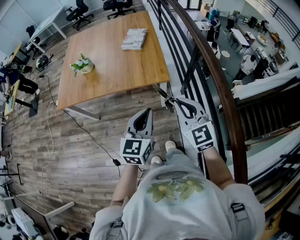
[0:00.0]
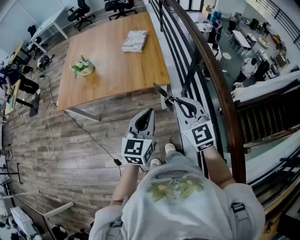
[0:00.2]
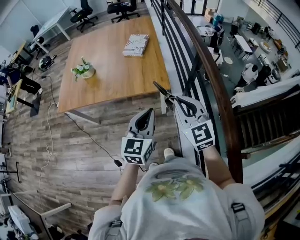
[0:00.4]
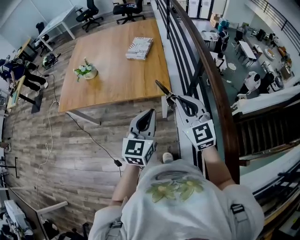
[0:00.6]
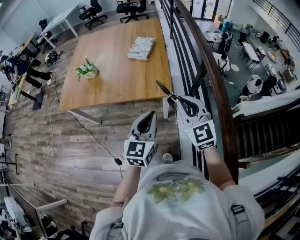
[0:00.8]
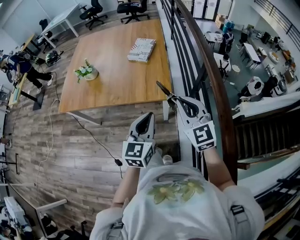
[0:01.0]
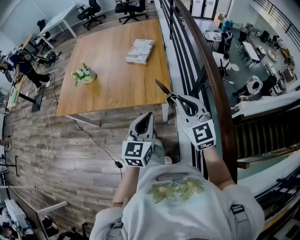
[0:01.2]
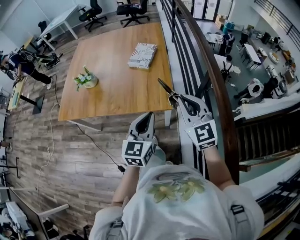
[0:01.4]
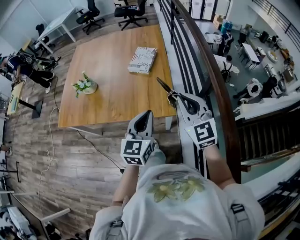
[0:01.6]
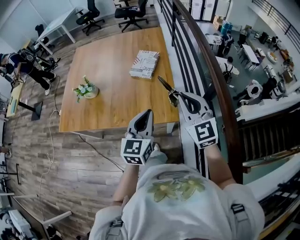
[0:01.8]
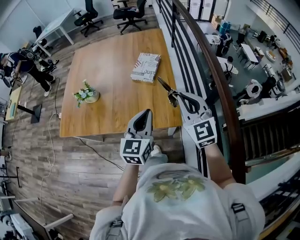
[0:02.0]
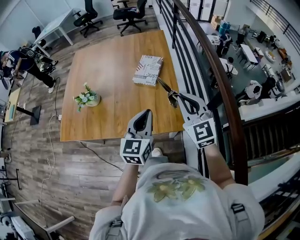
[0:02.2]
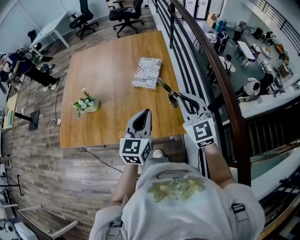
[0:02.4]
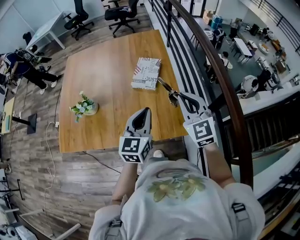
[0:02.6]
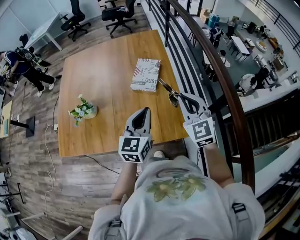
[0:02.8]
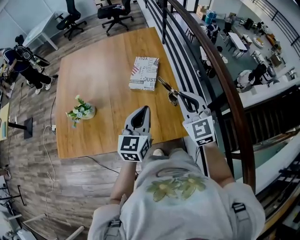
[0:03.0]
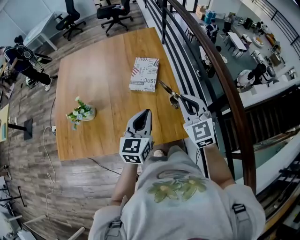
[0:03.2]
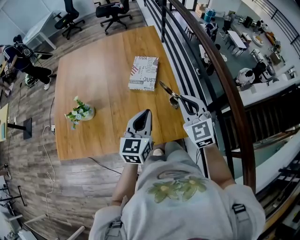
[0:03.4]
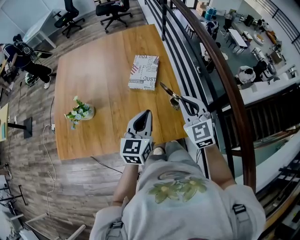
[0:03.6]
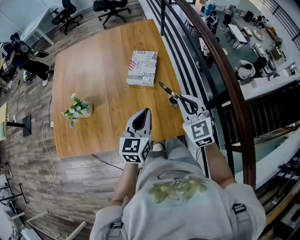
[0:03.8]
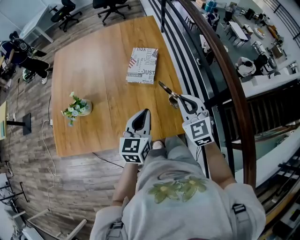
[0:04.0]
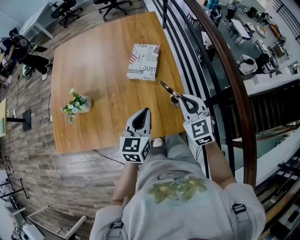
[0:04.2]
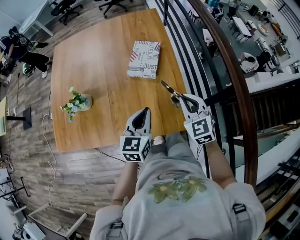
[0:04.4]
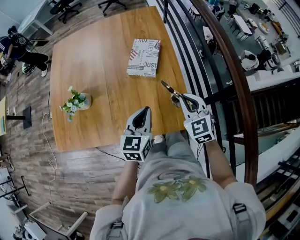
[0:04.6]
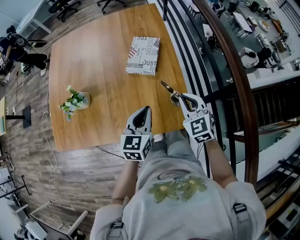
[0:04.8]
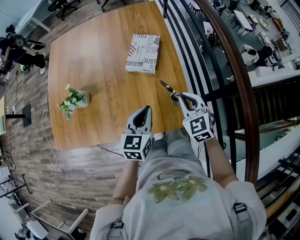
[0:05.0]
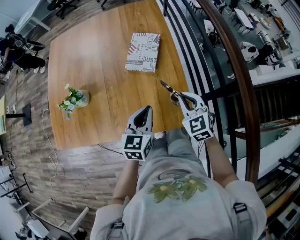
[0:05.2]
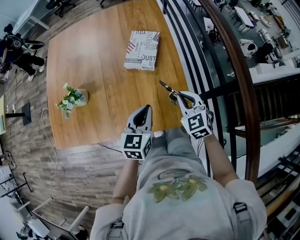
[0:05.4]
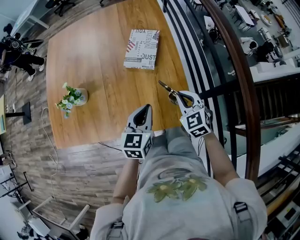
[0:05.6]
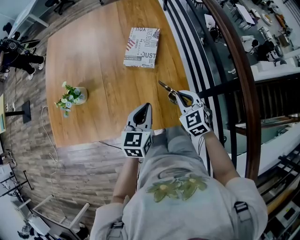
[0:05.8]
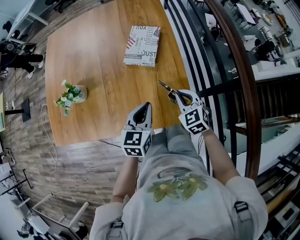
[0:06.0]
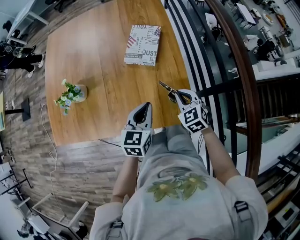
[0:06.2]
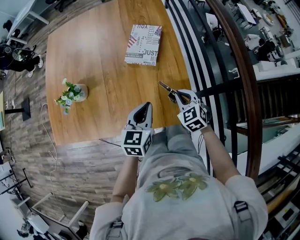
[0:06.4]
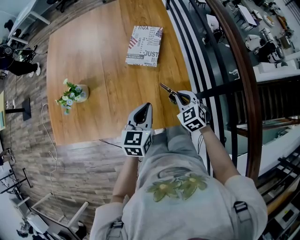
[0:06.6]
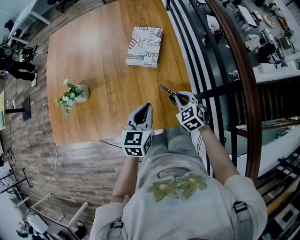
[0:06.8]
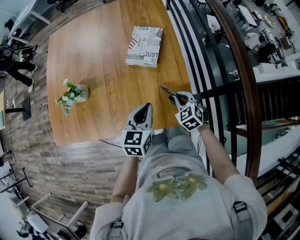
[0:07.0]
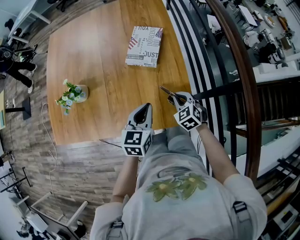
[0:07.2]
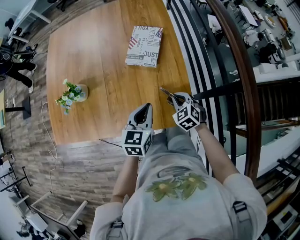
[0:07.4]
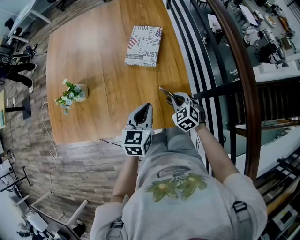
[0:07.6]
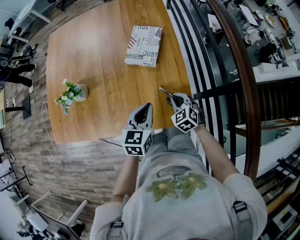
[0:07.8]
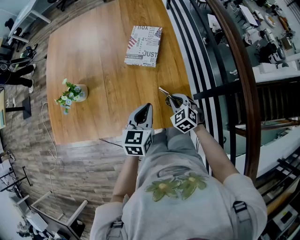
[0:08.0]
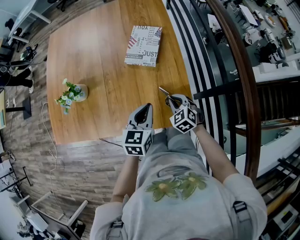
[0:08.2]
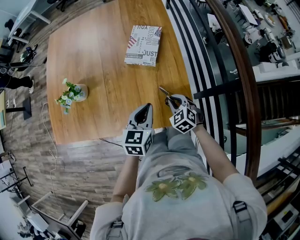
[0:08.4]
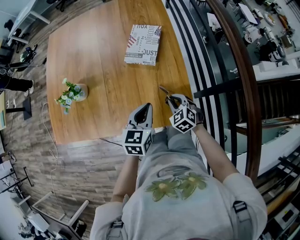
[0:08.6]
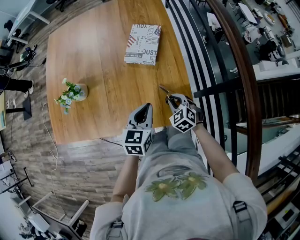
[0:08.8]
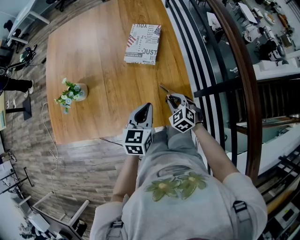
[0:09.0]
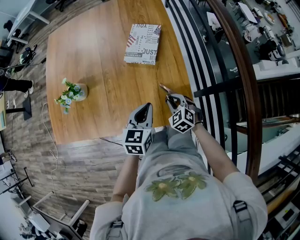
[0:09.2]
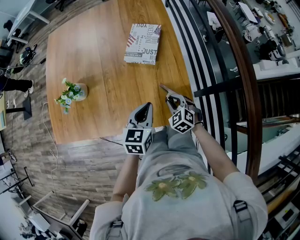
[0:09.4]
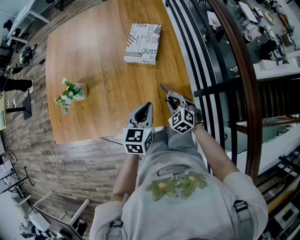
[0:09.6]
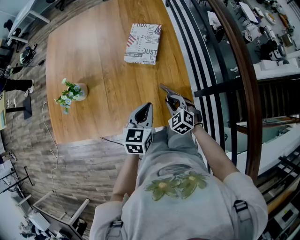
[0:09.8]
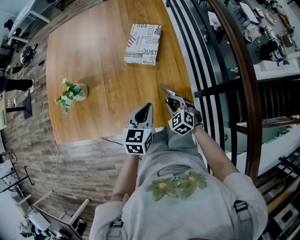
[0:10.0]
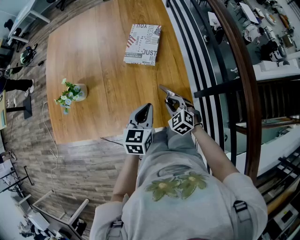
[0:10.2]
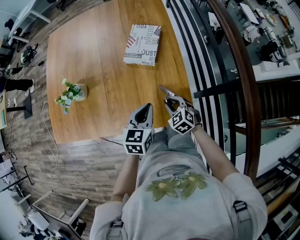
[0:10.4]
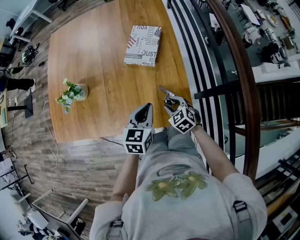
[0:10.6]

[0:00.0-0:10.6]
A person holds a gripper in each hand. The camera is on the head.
0:00.0 to 0:01.6: The grippers both shift forward by about 20 cm.
0:01.6 to 0:03.0: The left gripper heads forward and to the left, covering approximately 20 cm; the right gripper heads forward, covering approximately 20 cm.
0:03.0 to 0:04.6: The two grippers go some 10 cm downward.
0:04.6 to 0:06.0: The right gripper shifts some 10 cm downward.
0:06.0 to 0:07.6: The right gripper moves downward, roughly 10 cm.
0:07.6 to 0:10.6: The grippers make only small movements.

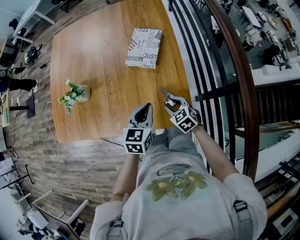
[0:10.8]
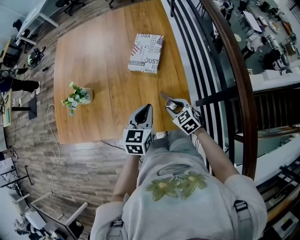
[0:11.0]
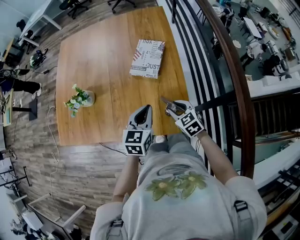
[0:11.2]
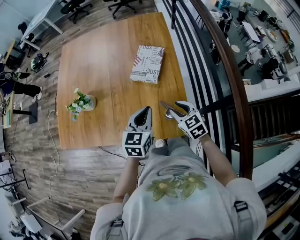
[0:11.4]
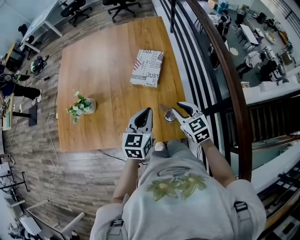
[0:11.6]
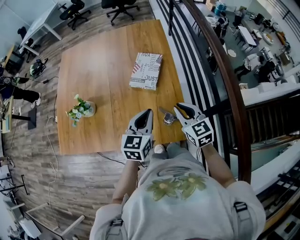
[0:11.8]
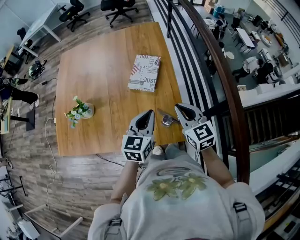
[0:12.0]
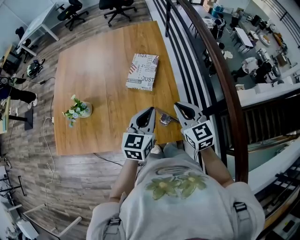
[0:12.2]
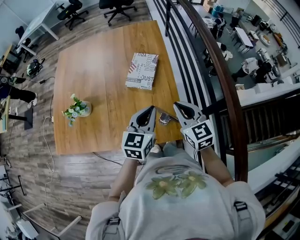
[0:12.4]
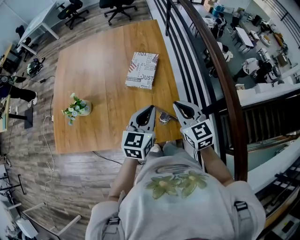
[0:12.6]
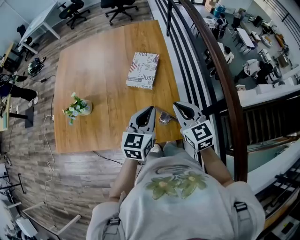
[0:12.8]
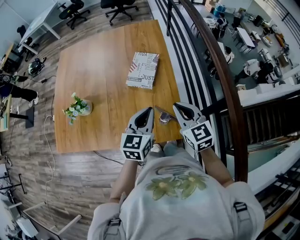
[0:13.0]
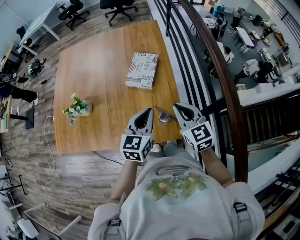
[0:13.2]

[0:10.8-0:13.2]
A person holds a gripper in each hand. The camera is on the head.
0:10.8 to 0:12.0: The right gripper travels upward by about 25 cm, turns by roughly 30 degrees, and closes; the left gripper is displaced upward by roughly 10 cm.
0:12.0 to 0:13.2: The grippers move only a little.

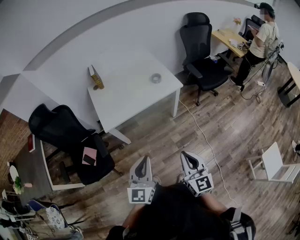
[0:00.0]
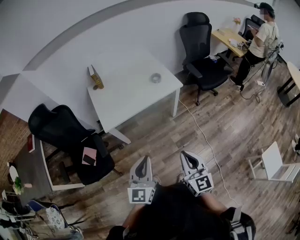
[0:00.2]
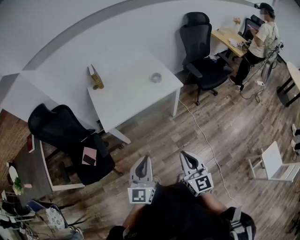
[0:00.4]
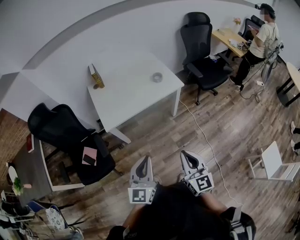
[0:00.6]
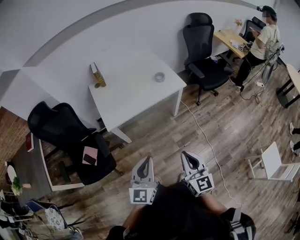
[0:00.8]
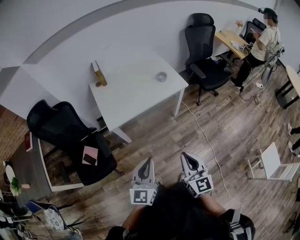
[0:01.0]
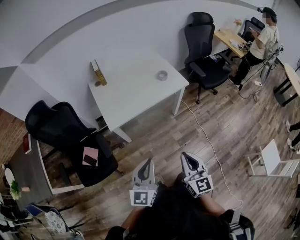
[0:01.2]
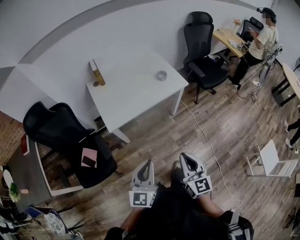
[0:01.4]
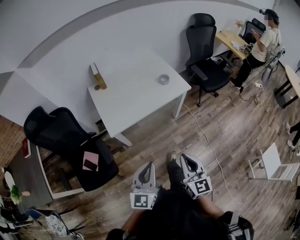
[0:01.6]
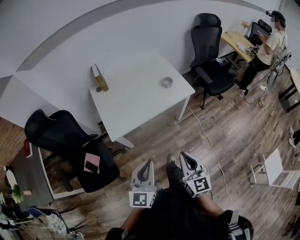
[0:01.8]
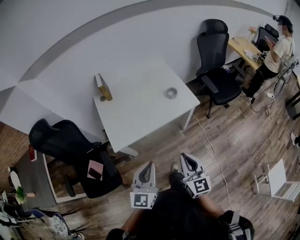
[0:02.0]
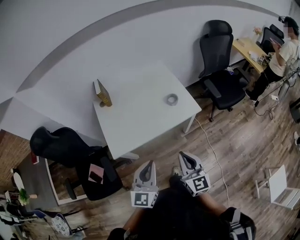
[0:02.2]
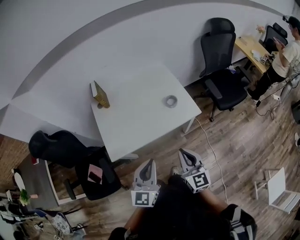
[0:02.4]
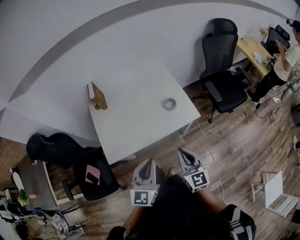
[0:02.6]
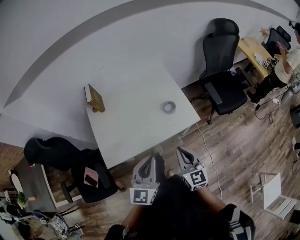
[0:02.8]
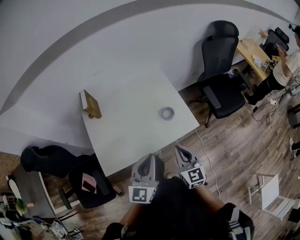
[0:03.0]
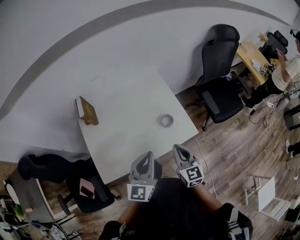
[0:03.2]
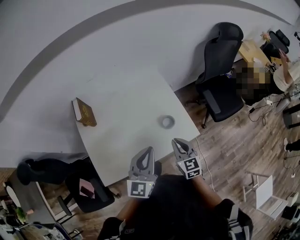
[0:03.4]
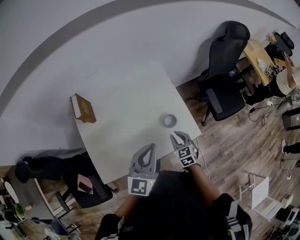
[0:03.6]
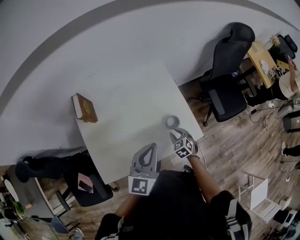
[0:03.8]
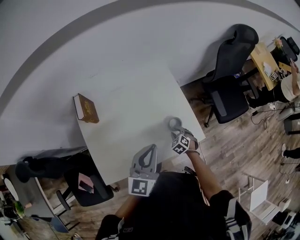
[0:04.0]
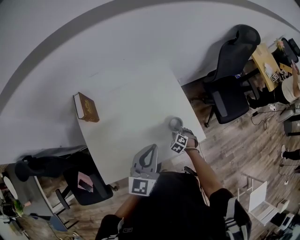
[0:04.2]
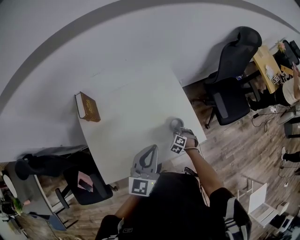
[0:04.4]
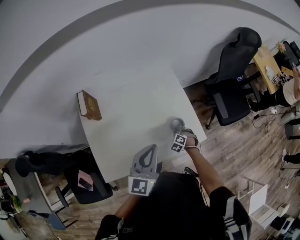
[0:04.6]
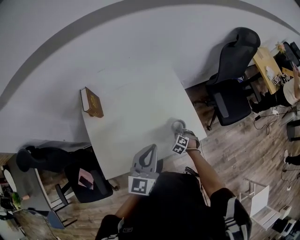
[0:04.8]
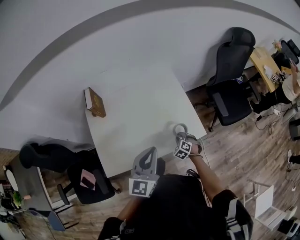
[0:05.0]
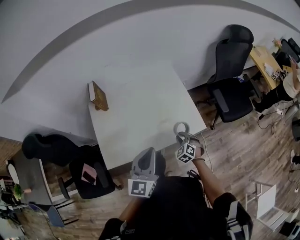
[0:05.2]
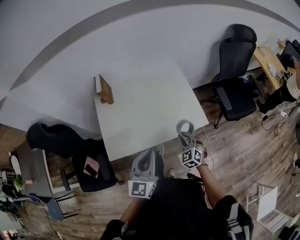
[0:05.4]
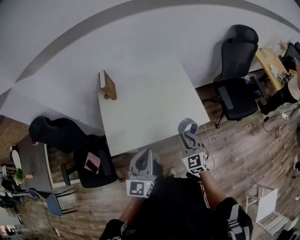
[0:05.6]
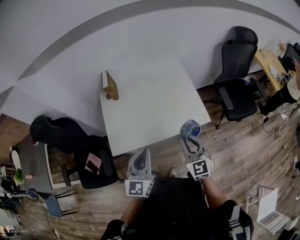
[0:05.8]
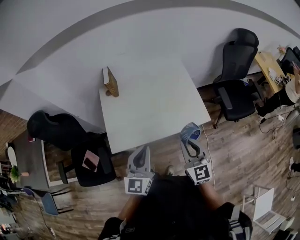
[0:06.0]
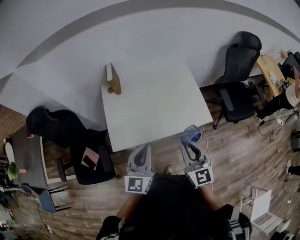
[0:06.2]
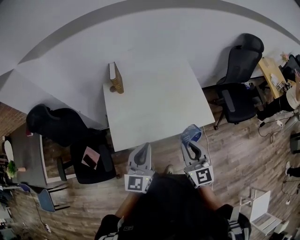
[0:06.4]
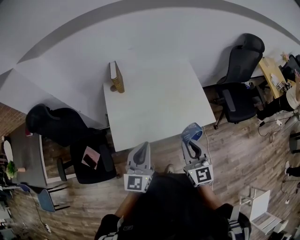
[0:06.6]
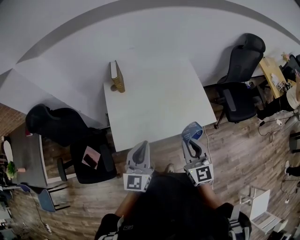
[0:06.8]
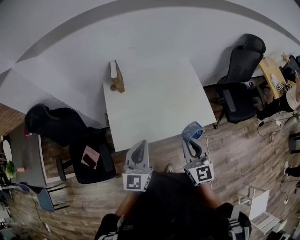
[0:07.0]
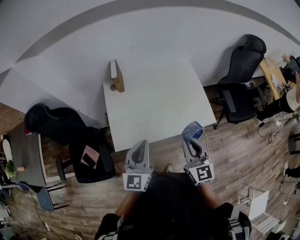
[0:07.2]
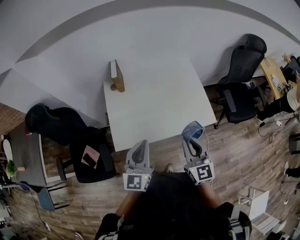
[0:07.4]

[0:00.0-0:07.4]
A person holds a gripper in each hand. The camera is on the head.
0:00.0 to 0:01.4: Both grippers move to the left, some 10 cm.
0:01.4 to 0:03.0: The two grippers travel together, forward, roughly 40 cm.
0:03.0 to 0:04.4: The left gripper travels forward by some 20 cm. The right gripper travels downward and forward by some 40 cm, tips its fingers downward by some 60 degrees, and opens its fingers.
0:04.4 to 0:06.0: The left gripper is displaced backward by approximately 25 cm. The right gripper shifts some 50 cm upward and backward, and tilts its fingers approximately 60 degrees upward.
0:06.0 to 0:07.4: The right gripper changes place by approximately 5 cm; the left gripper goes approximately 5 cm to the left.

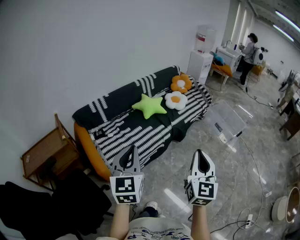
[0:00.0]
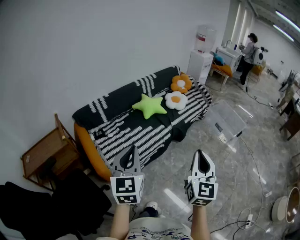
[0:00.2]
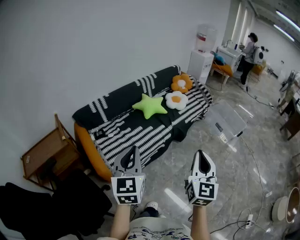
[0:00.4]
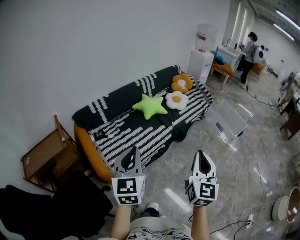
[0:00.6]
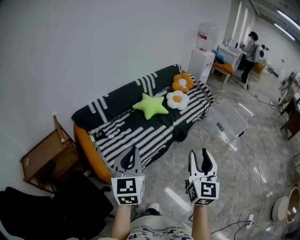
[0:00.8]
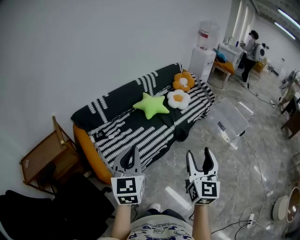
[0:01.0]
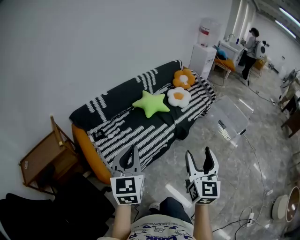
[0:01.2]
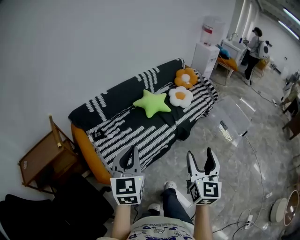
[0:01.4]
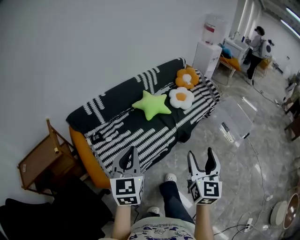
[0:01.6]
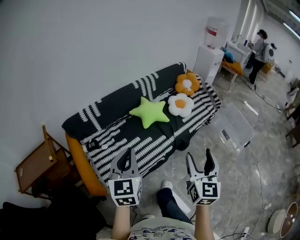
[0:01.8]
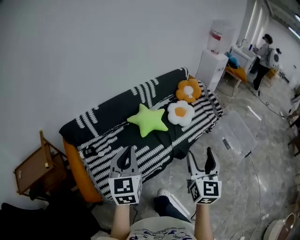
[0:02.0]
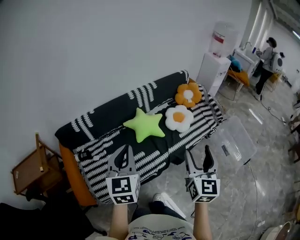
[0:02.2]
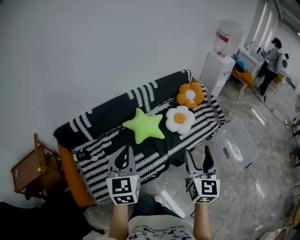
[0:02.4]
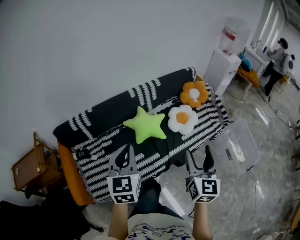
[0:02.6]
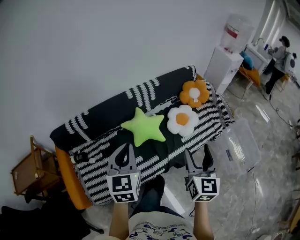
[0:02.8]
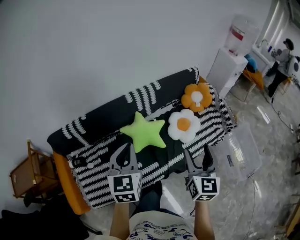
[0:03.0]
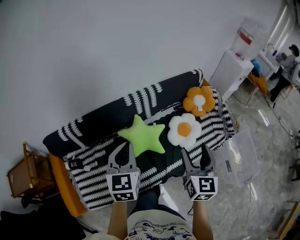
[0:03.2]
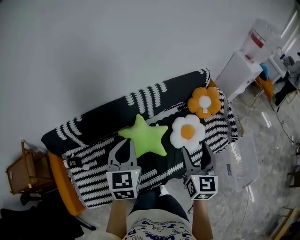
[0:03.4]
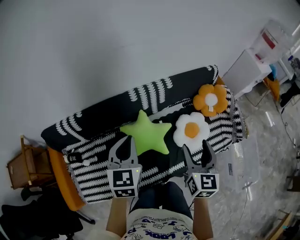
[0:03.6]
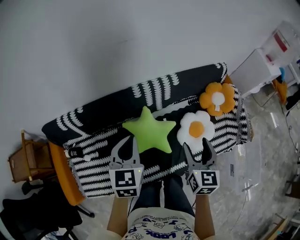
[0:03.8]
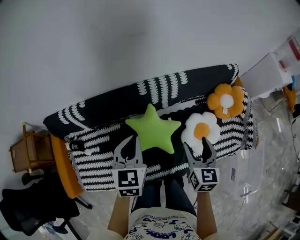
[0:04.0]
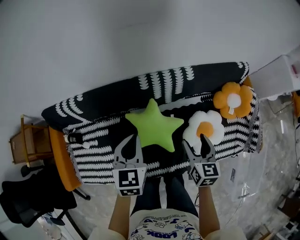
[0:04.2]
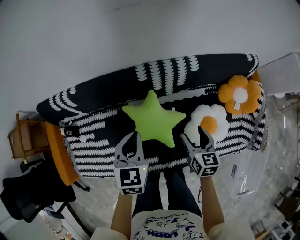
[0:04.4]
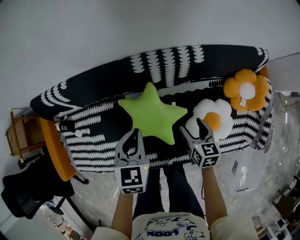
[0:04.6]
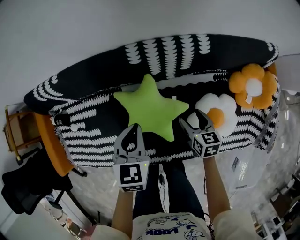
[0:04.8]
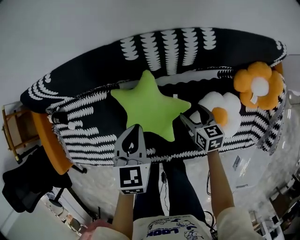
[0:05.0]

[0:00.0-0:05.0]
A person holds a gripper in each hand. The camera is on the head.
0:00.0 to 0:01.6: Both grippers move forward, approximately 15 cm. The right gripper opens.
0:01.6 to 0:03.4: The two grippers travel together, forward, approximately 60 cm. The right gripper turns by approximately 20 degrees.
0:03.4 to 0:05.0: Both grippers move downward, roughly 40 cm. The right gripper changes its angle by approximately 50 degrees. The left gripper rotates some 30 degrees.
